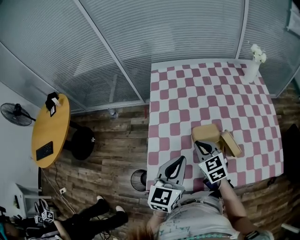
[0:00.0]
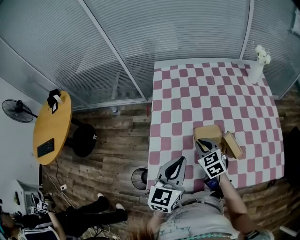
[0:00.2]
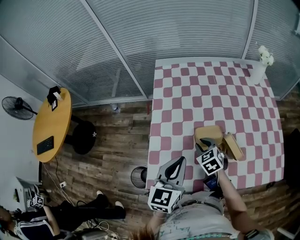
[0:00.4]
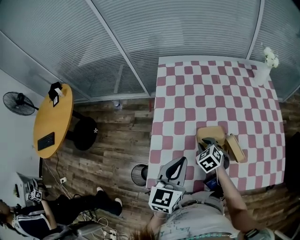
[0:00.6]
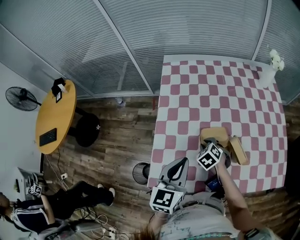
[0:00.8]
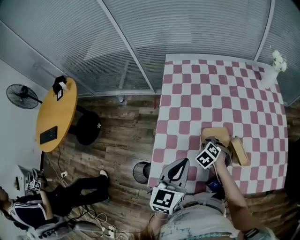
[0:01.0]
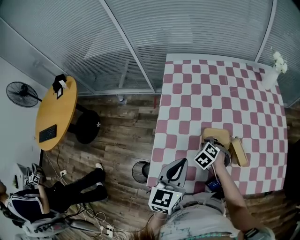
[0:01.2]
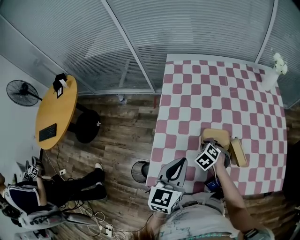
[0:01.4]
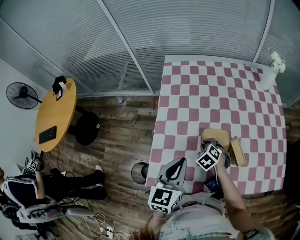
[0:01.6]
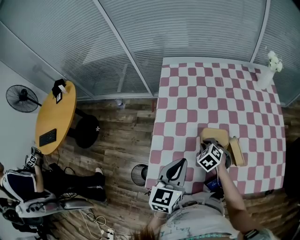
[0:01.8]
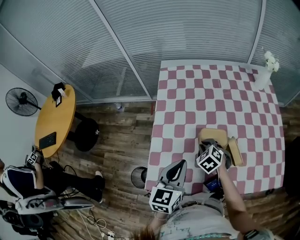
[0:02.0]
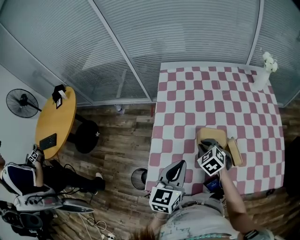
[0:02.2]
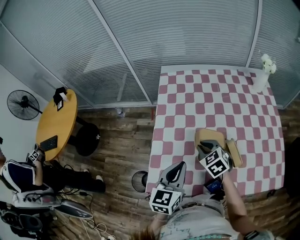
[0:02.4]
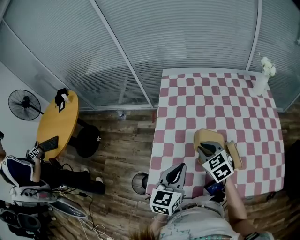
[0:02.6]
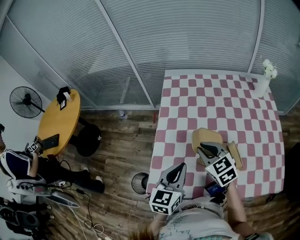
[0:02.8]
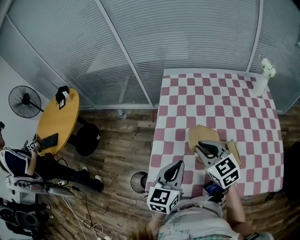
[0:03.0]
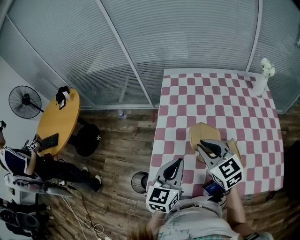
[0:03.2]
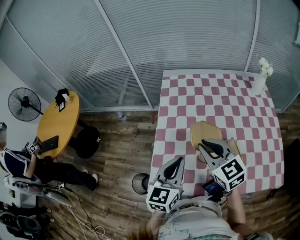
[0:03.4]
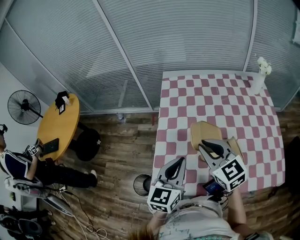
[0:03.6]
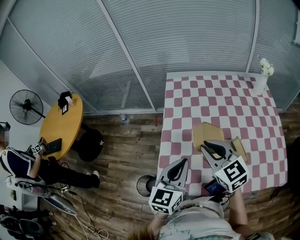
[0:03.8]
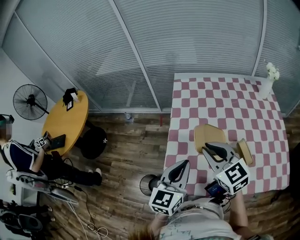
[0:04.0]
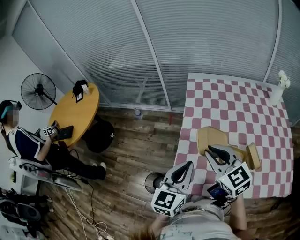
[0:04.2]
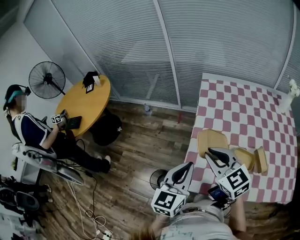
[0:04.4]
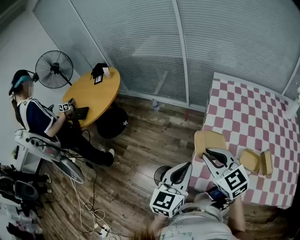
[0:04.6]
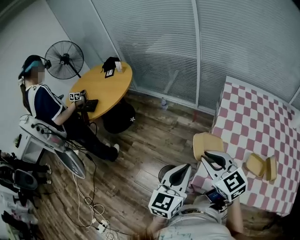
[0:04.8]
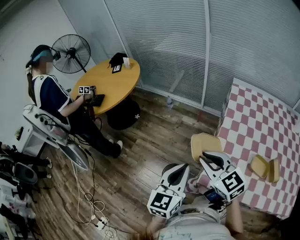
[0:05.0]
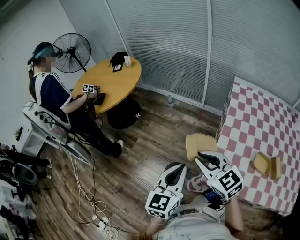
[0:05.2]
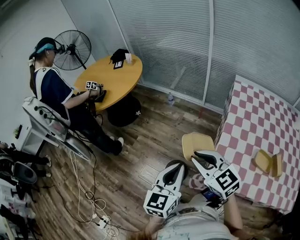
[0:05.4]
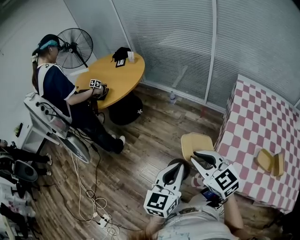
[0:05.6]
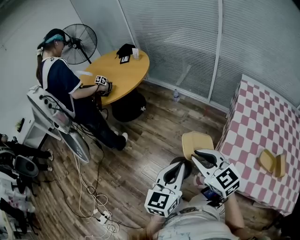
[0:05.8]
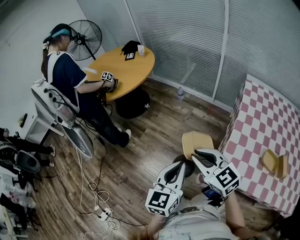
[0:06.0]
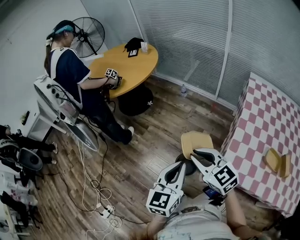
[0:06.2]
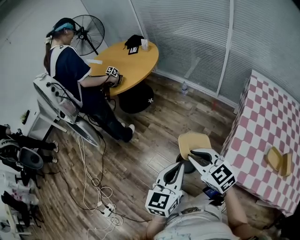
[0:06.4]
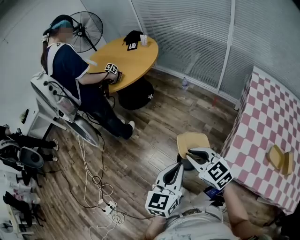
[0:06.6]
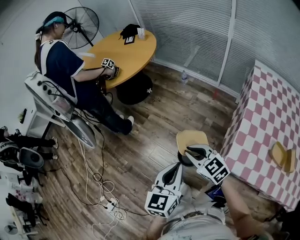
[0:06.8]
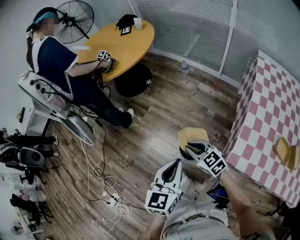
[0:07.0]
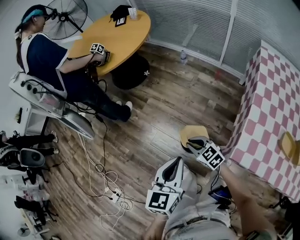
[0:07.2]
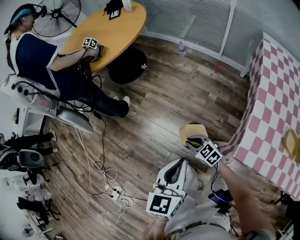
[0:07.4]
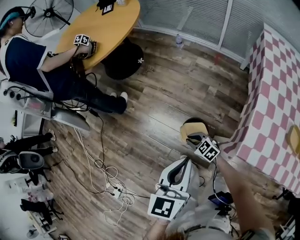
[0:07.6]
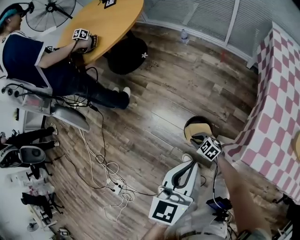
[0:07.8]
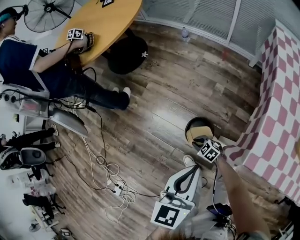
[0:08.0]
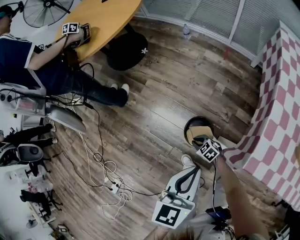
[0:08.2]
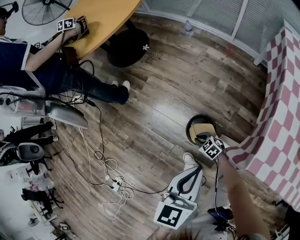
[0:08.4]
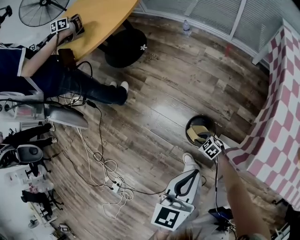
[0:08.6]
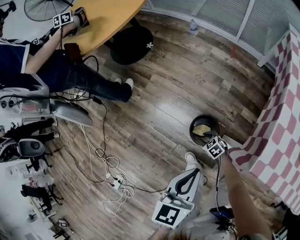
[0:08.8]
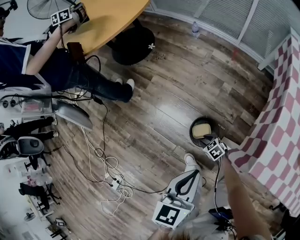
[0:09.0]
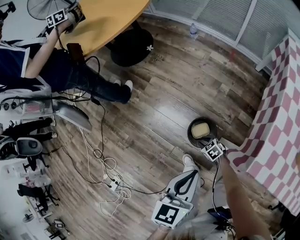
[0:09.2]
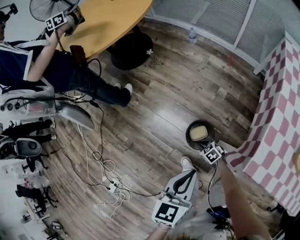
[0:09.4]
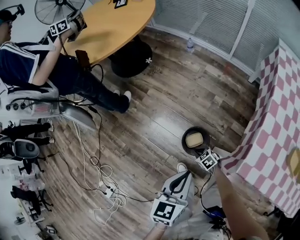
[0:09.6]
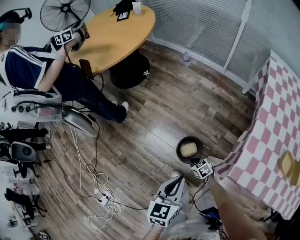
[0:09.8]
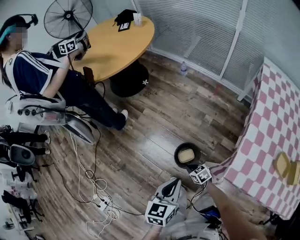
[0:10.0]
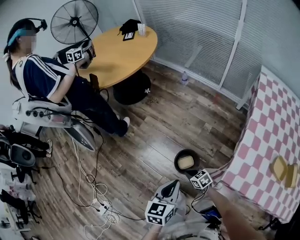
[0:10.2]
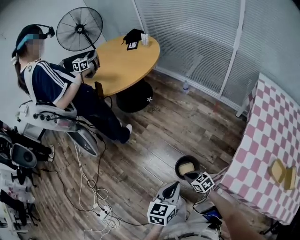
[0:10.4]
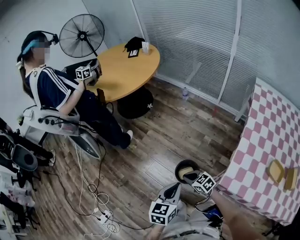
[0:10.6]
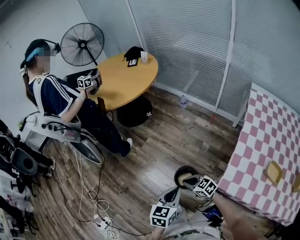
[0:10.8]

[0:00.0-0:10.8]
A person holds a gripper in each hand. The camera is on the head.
0:00.0 to 0:01.6: The right gripper heads downward, covering some 15 cm, and tilts its fingers roughly 30 degrees downward.
0:01.6 to 0:03.0: The right gripper is displaced upward by some 20 cm, and angles its fingers upward, by about 40 degrees.
0:03.0 to 0:04.6: Both grippers travel together to the left, some 25 cm.
0:04.6 to 0:06.2: Both grippers move to the left, approximately 25 cm.
0:06.2 to 0:07.8: The left gripper goes approximately 15 cm downward, while the right gripper moves downward, approximately 50 cm, and changes its angle by about 30 degrees.
0:07.8 to 0:09.2: The grippers both shift downward by approximately 10 cm.
0:09.2 to 0:10.8: The right gripper moves upward, about 30 cm, rotates approximately 30 degrees, and closes its fingers. Meanwhile the left gripper shifts some 10 cm upward.

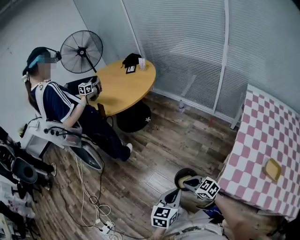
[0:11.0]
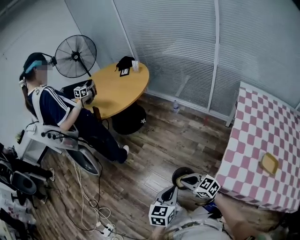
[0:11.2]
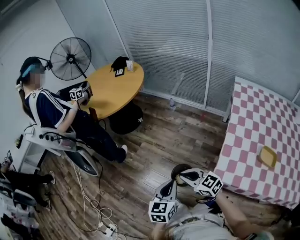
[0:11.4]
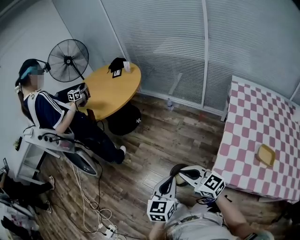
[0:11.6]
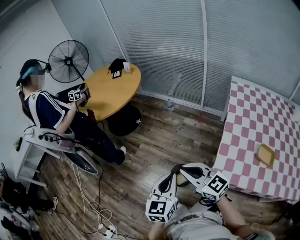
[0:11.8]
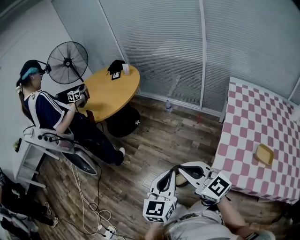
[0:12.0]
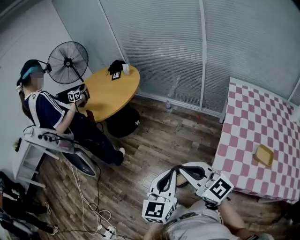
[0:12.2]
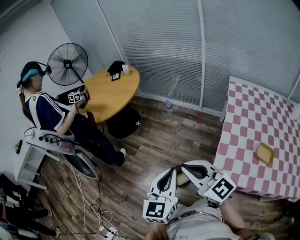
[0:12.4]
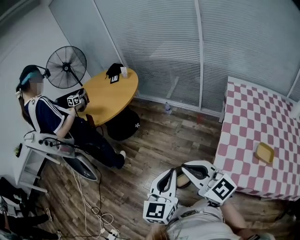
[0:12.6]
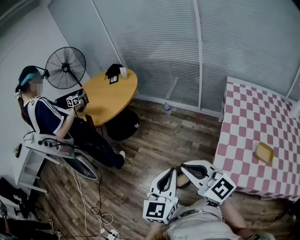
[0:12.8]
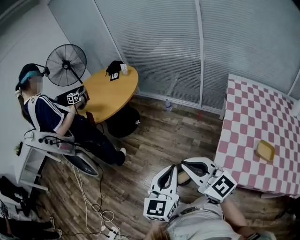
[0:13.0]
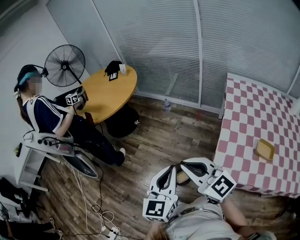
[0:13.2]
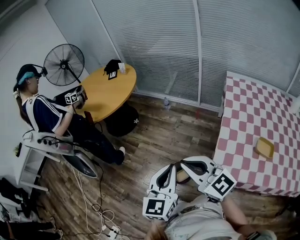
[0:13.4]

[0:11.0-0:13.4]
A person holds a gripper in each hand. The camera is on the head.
0:11.0 to 0:12.2: The right gripper is displaced upward by some 30 cm, and tips its fingers upward by approximately 30 degrees. Meanwhile the left gripper heads upward, covering approximately 15 cm, and swivels roughly 20 degrees.
0:12.2 to 0:13.4: The grippers move only a little.

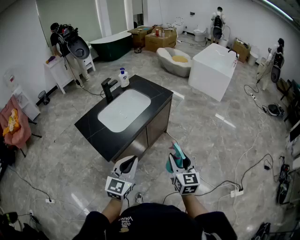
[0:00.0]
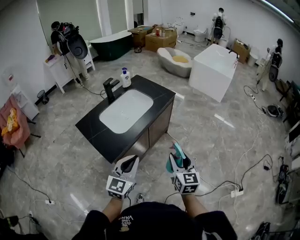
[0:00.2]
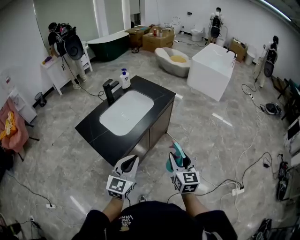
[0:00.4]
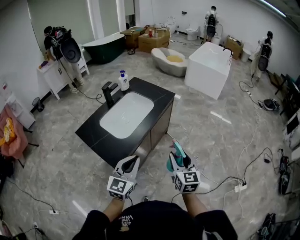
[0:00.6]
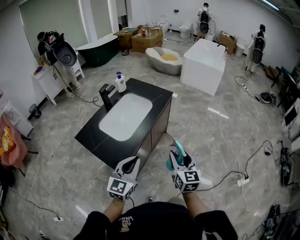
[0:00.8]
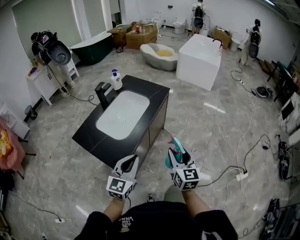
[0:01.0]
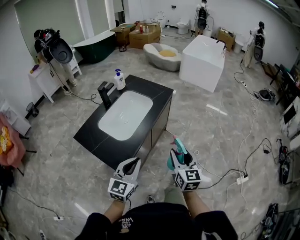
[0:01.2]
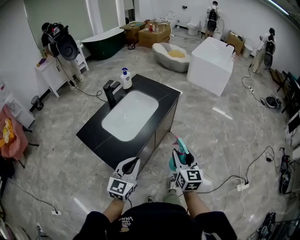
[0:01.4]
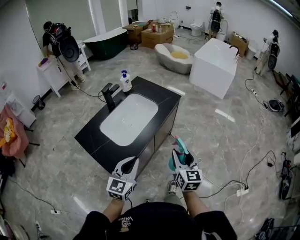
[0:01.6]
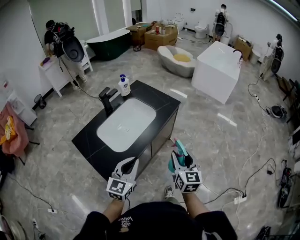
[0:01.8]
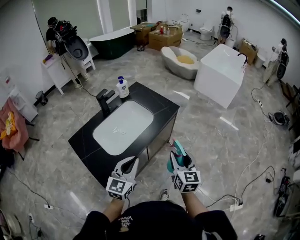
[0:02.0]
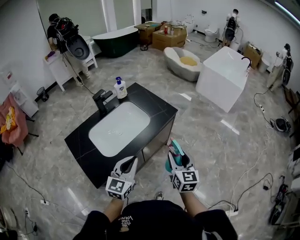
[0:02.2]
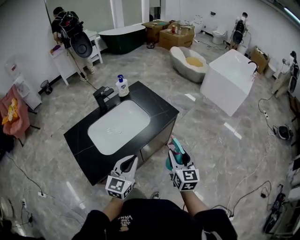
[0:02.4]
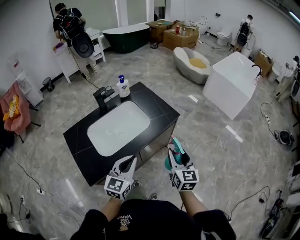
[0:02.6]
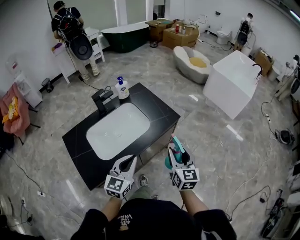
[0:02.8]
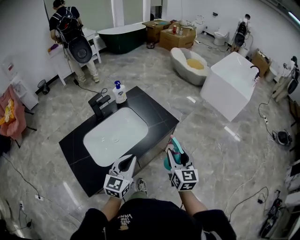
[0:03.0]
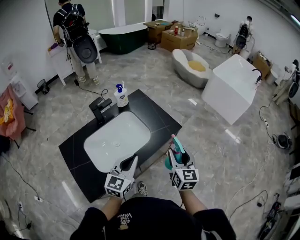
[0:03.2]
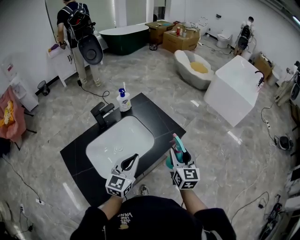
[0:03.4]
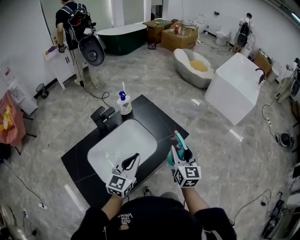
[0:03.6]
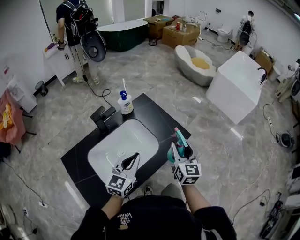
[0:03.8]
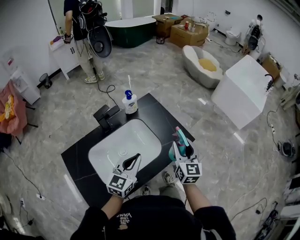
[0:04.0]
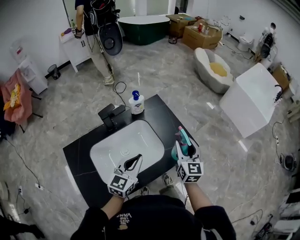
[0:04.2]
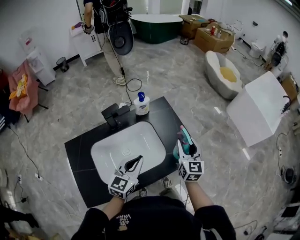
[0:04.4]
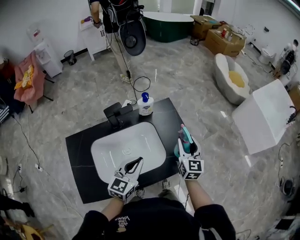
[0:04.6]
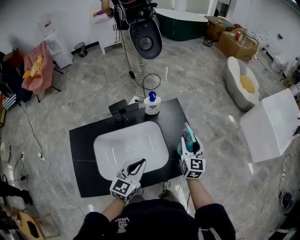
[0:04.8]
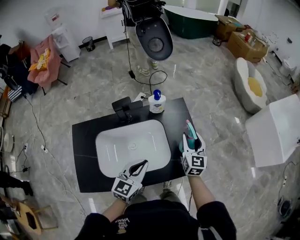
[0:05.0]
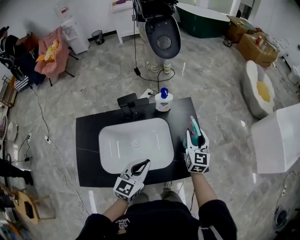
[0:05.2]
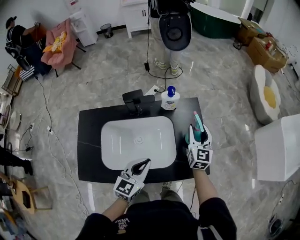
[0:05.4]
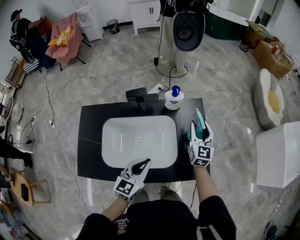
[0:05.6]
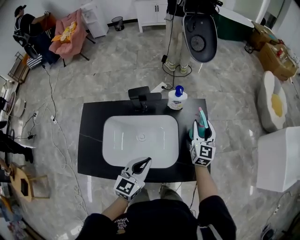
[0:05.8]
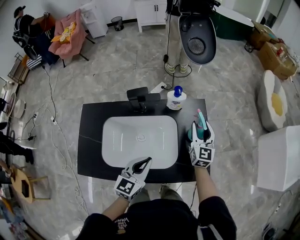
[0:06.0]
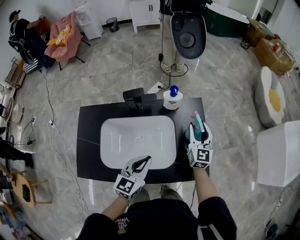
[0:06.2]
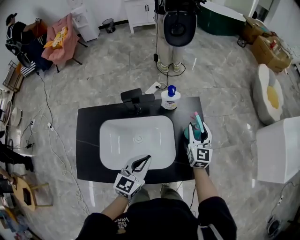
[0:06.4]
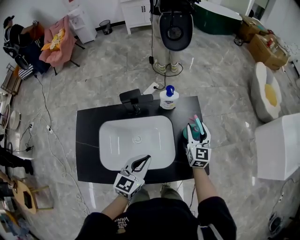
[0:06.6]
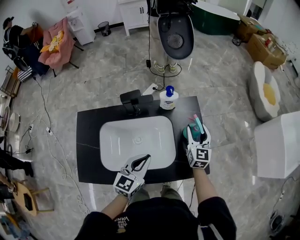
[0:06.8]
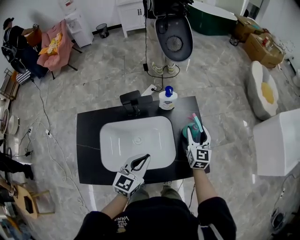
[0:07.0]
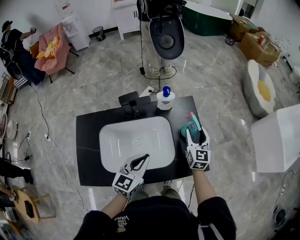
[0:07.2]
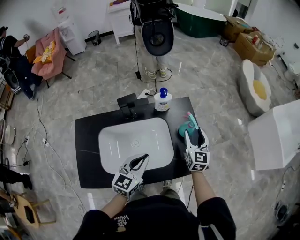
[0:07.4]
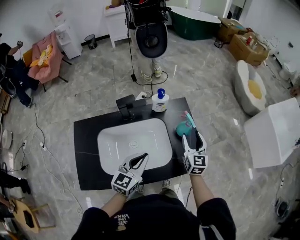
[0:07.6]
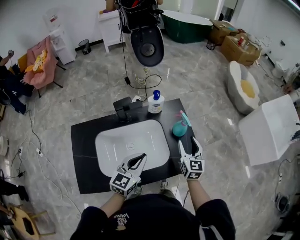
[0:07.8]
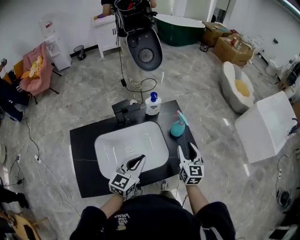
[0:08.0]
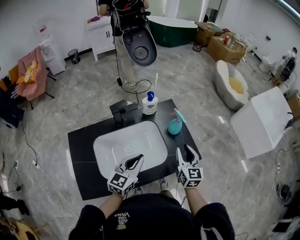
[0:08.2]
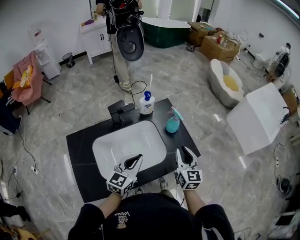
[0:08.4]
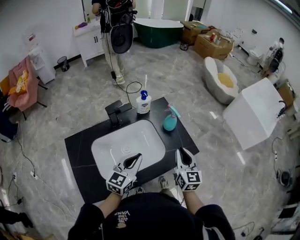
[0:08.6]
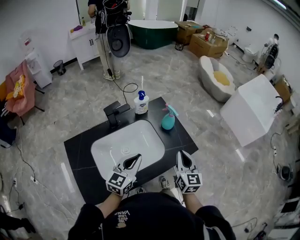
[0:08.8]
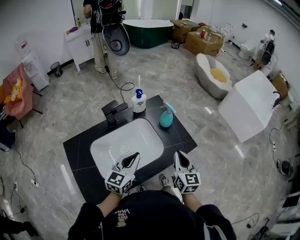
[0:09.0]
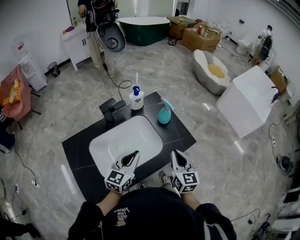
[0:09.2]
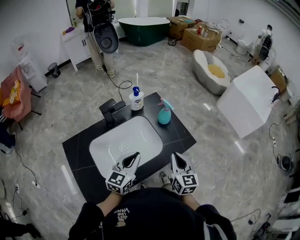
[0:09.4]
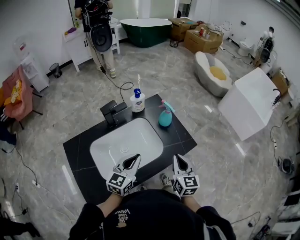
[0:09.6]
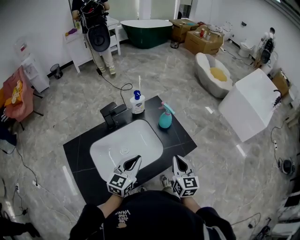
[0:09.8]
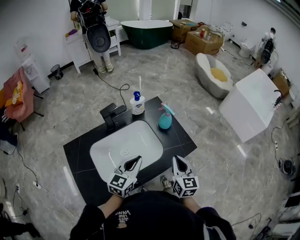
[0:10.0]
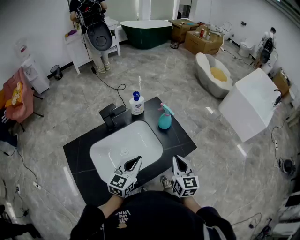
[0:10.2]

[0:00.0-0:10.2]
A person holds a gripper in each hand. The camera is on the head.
0:00.0 to 0:01.4: Both grippers move to the left and forward, roughly 15 cm.
0:01.4 to 0:03.0: The left gripper heads forward and to the right, covering roughly 30 cm; the right gripper shifts approximately 30 cm forward.
0:03.0 to 0:04.4: The right gripper moves forward, about 25 cm. The left gripper goes roughly 20 cm forward and to the left.
0:04.4 to 0:05.8: The right gripper heads forward, covering approximately 20 cm. Meanwhile the left gripper rotates some 30 degrees.
0:05.8 to 0:07.2: The right gripper ends up about 5 cm from where it was.
0:07.2 to 0:08.8: The right gripper goes about 25 cm backward, and closes up. Meanwhile the left gripper is displaced backward by roughly 5 cm, and turns by roughly 20 degrees.
0:08.8 to 0:10.2: The grippers make only small movements.
